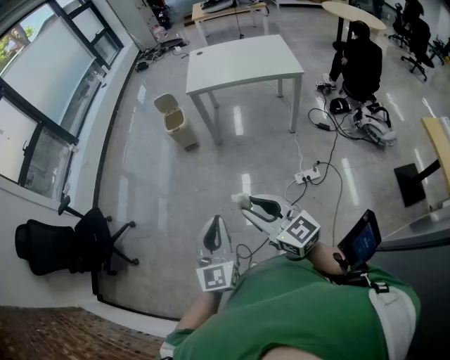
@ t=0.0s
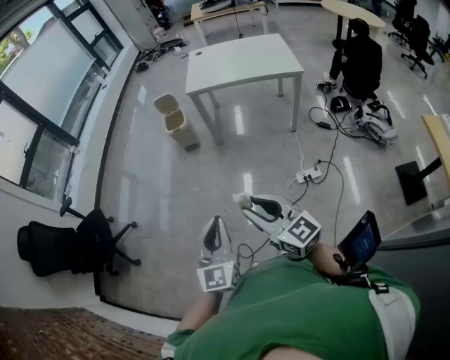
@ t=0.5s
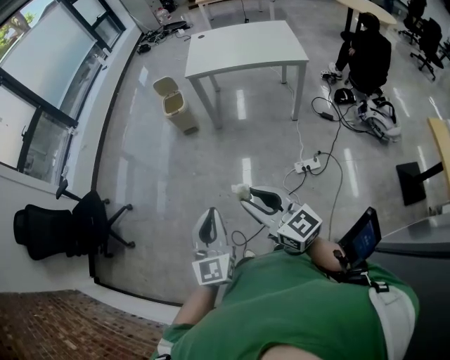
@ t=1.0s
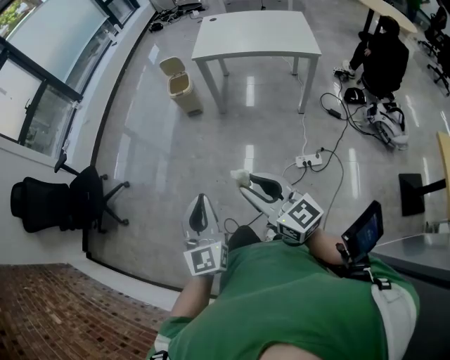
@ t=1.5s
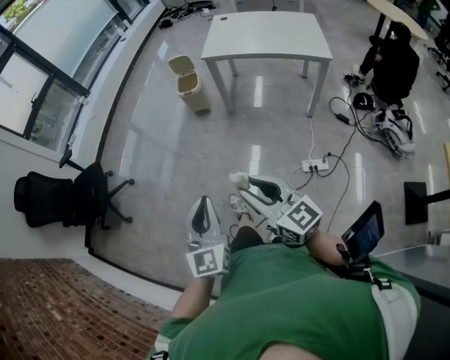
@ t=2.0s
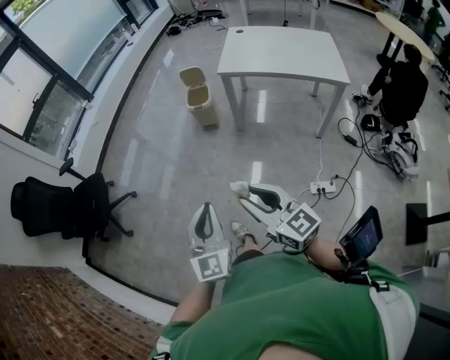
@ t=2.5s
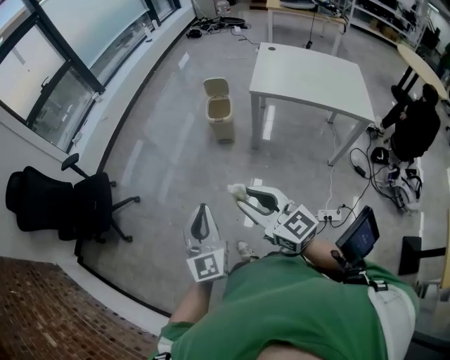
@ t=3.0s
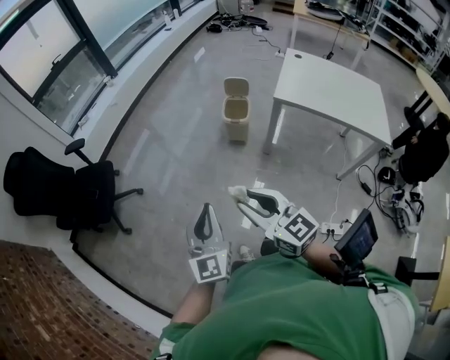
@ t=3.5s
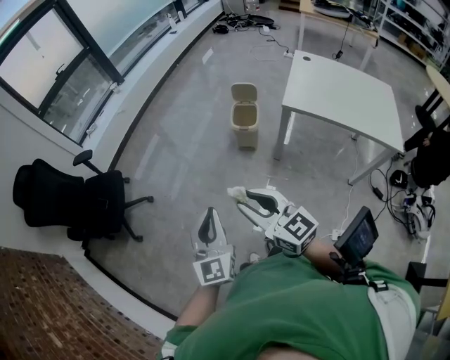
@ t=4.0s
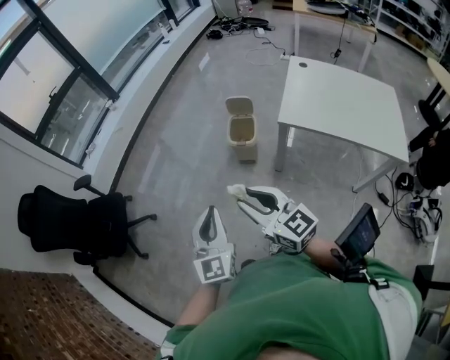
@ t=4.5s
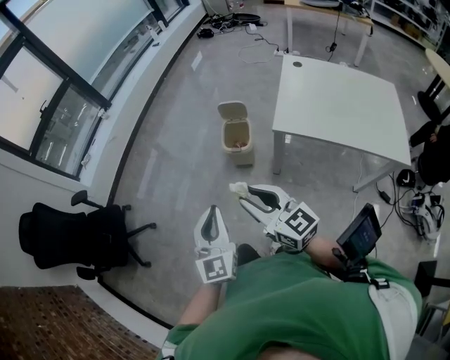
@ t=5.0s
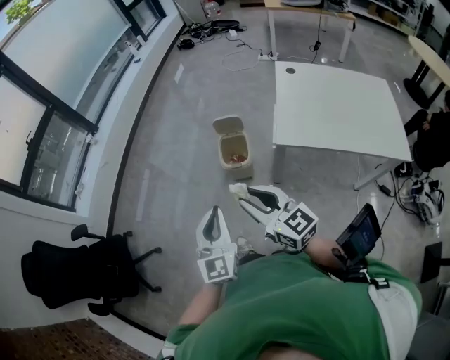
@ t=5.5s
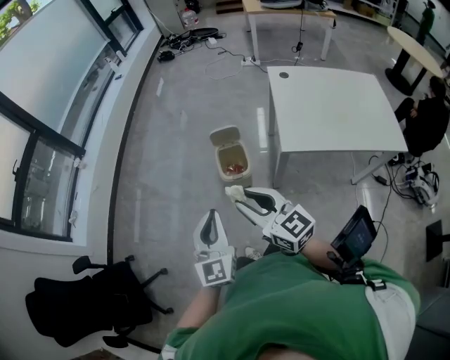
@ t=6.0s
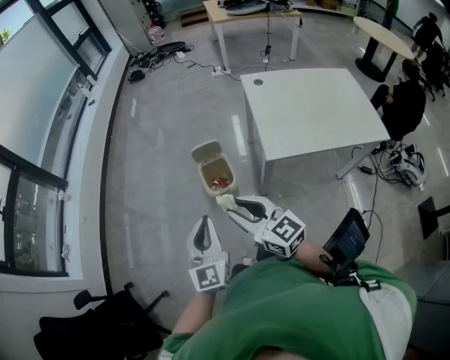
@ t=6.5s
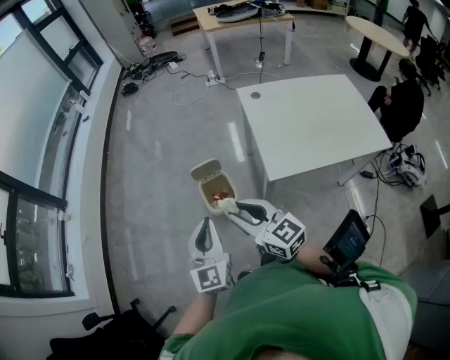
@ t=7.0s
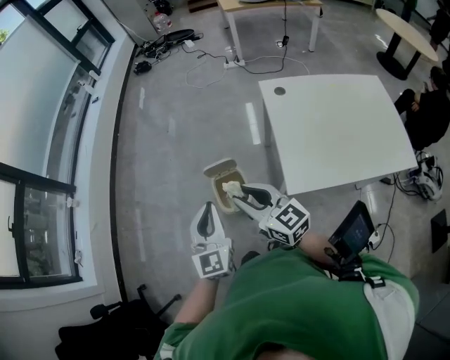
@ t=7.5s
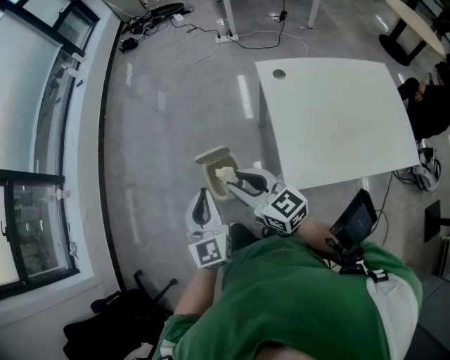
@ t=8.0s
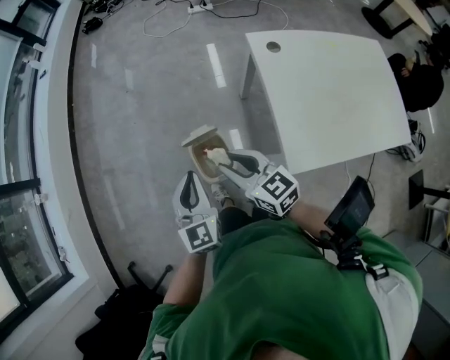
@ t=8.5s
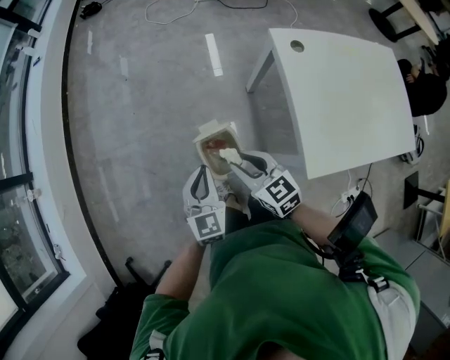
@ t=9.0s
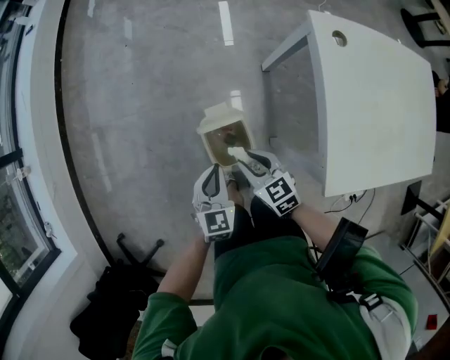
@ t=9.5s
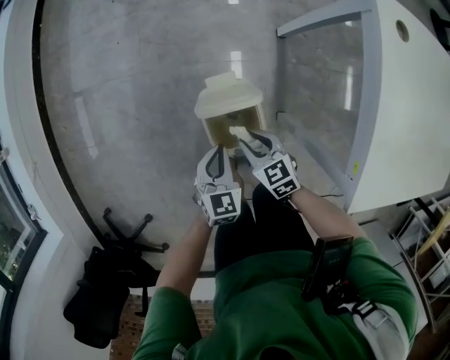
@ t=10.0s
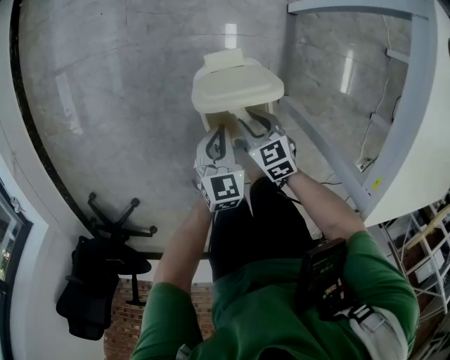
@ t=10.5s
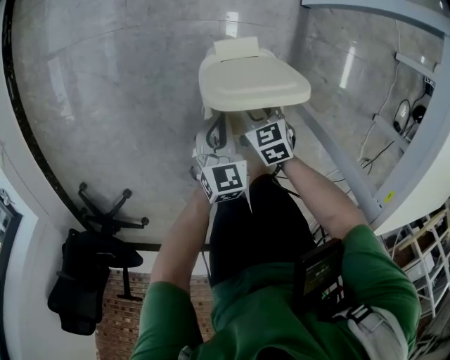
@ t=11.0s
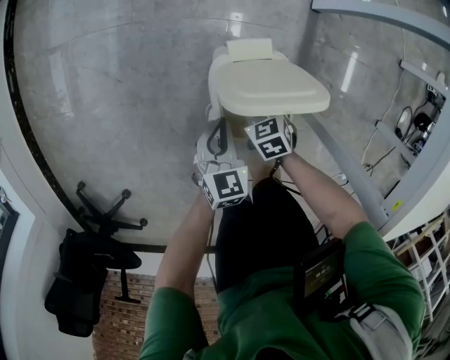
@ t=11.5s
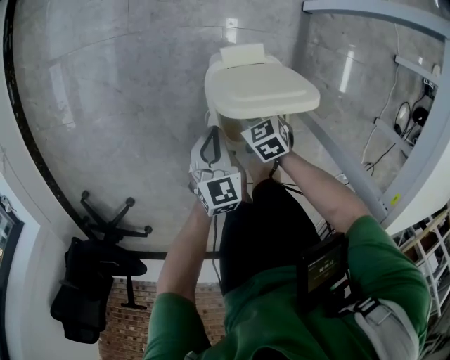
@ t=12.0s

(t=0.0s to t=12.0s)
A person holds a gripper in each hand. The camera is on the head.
t=0.0s - t=2.0s: The right gripper moves approximately 5 cm.
t=2.0s - t=4.0s: Both grippers travel together forward, some 40 cm.
t=4.0s - t=6.0s: The grippers both shift forward by about 35 cm. The right gripper swivels about 20 degrees, while the left gripper rotates some 20 degrees.
t=6.0s - t=8.0s: Both grippers travel together forward and to the right, about 30 cm.
t=8.0s - t=10.0s: Both grippers travel together downward, roughly 40 cm. The right gripper tips its fingers downward by some 40 degrees. The left gripper angles its fingers downward, by approximately 30 degrees.
t=10.0s - t=12.0s: The right gripper travels downward by about 20 cm. The left gripper heads downward and to the left, covering about 15 cm.

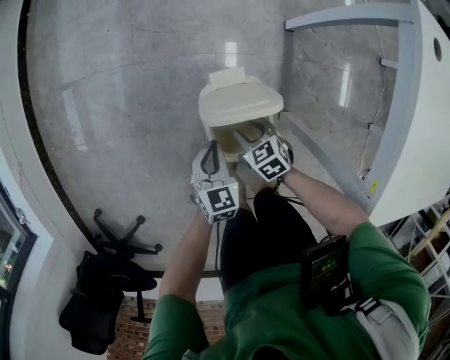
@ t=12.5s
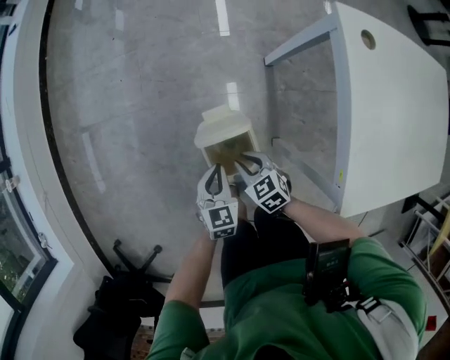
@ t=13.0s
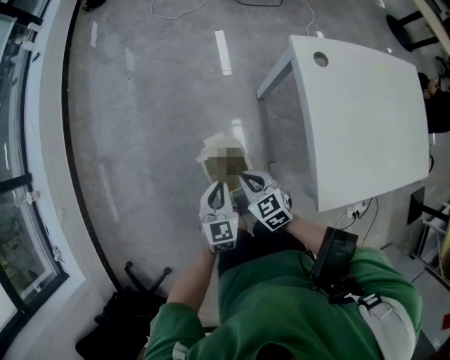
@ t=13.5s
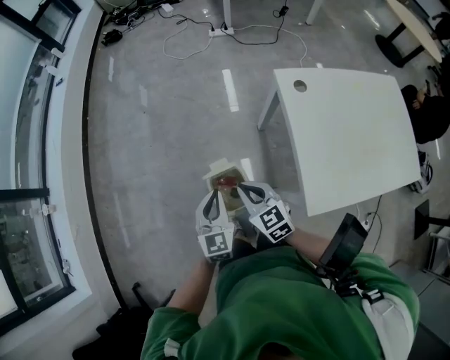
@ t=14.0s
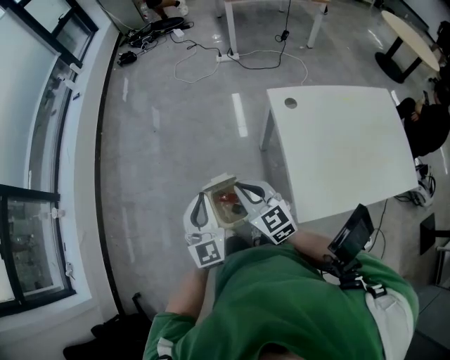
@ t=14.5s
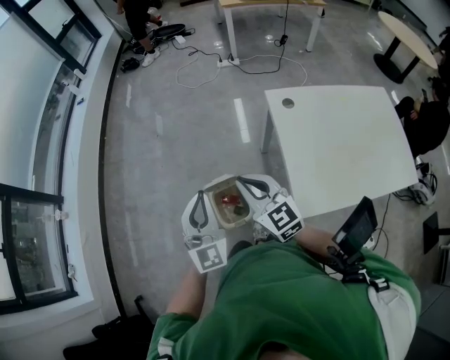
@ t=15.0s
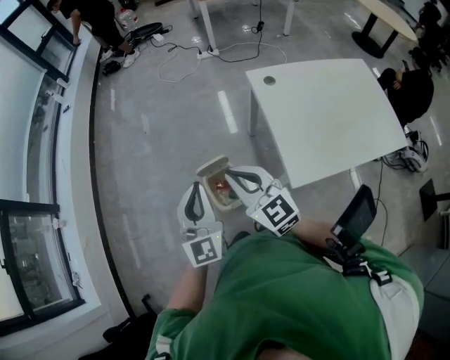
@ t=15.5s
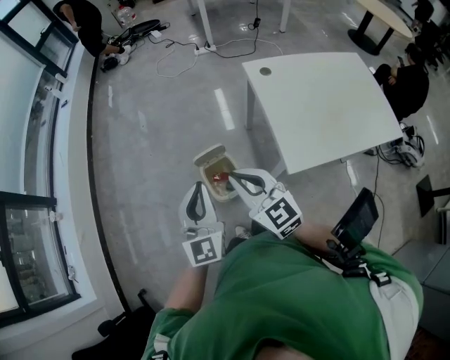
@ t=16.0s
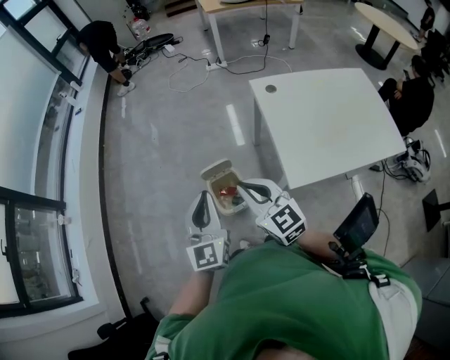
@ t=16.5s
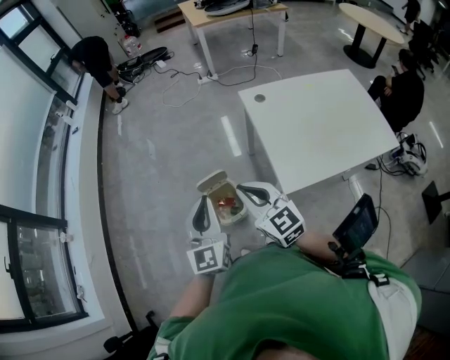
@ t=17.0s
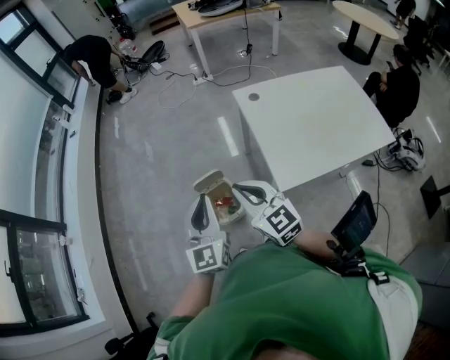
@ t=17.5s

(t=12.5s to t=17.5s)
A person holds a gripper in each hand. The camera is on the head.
t=12.5s - t=15.0s: Both grippers travel together upward, roughly 60 cm. The right gripper points its fingers roughly 50 degrees further upward, and closes its fingers; the left gripper tilts its fingers roughly 50 degrees upward.
t=15.0s - t=17.5s: The grippers both shift backward by about 10 cm.

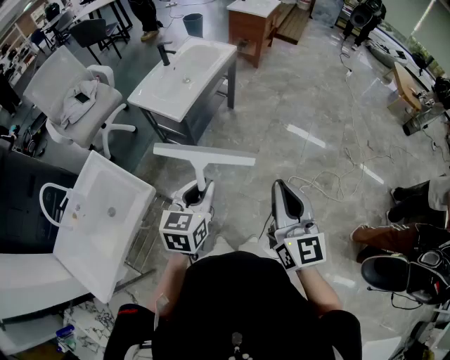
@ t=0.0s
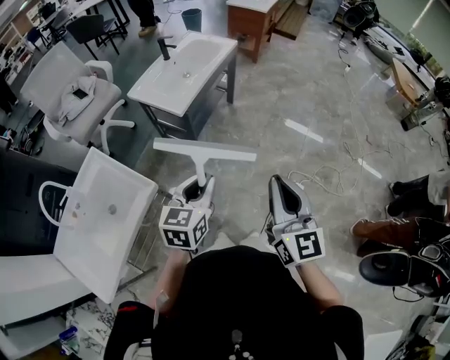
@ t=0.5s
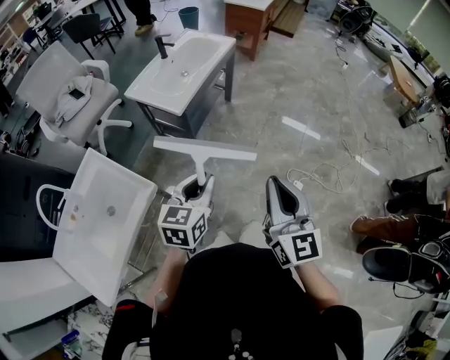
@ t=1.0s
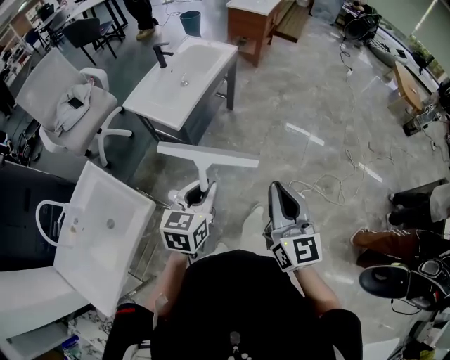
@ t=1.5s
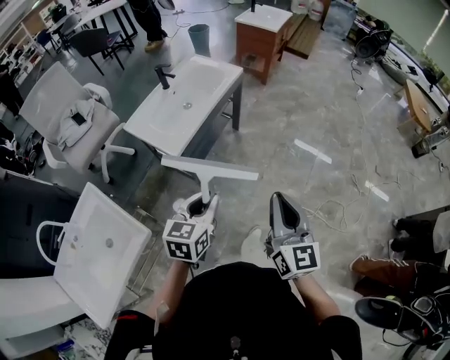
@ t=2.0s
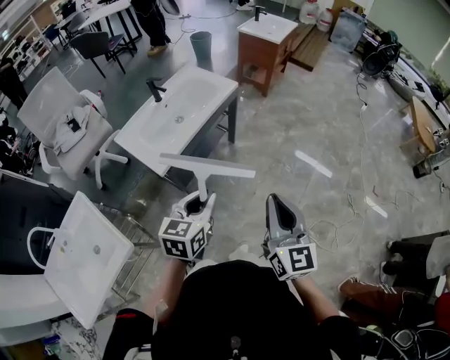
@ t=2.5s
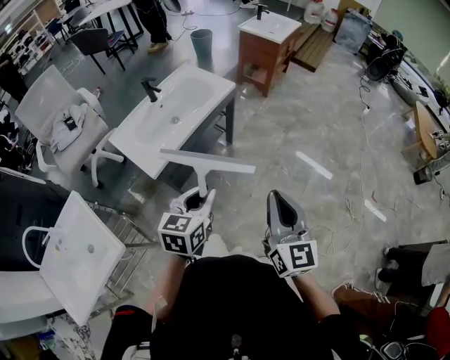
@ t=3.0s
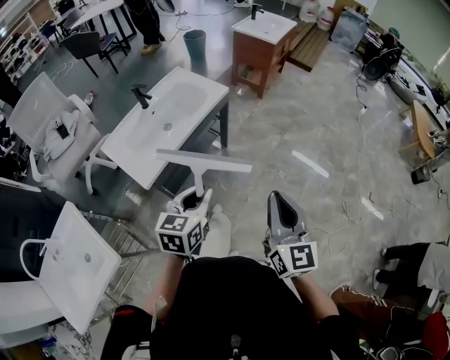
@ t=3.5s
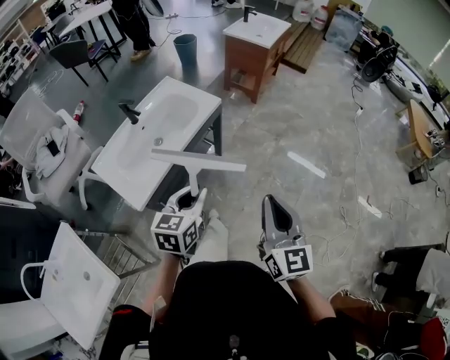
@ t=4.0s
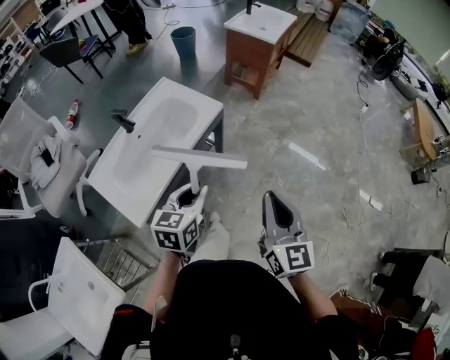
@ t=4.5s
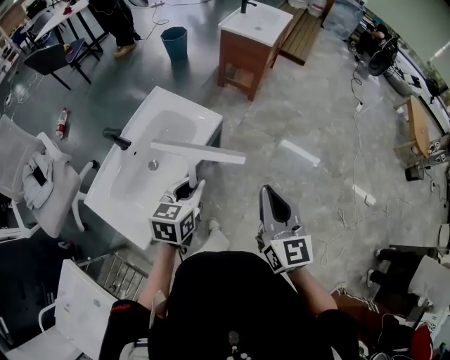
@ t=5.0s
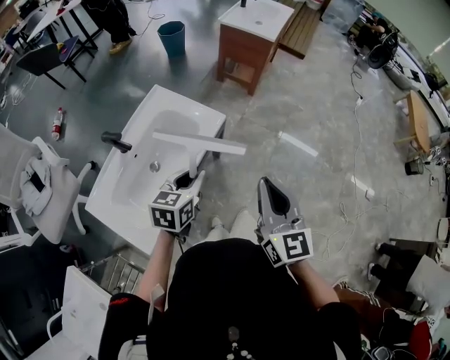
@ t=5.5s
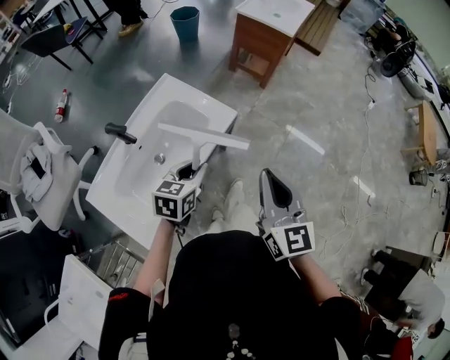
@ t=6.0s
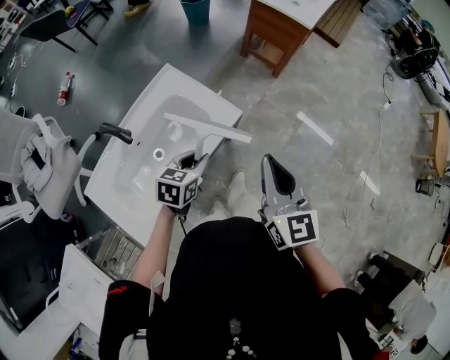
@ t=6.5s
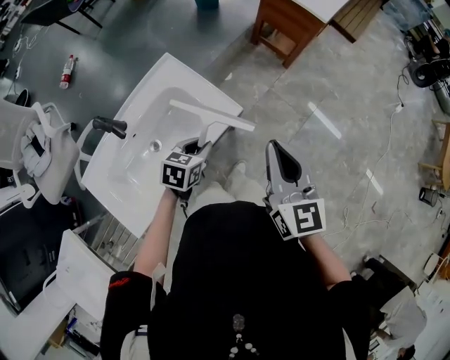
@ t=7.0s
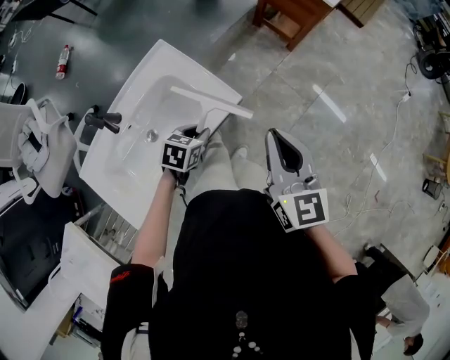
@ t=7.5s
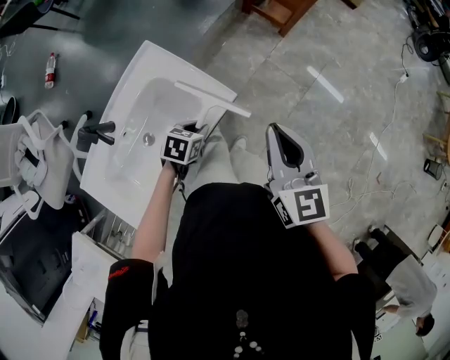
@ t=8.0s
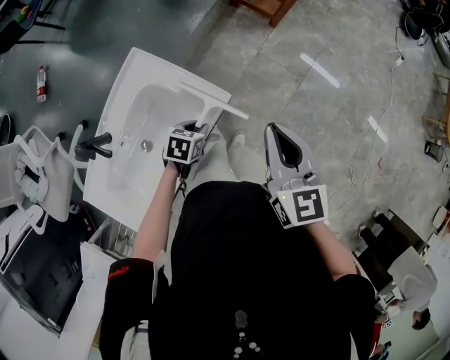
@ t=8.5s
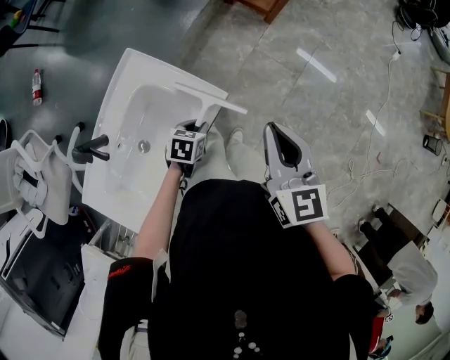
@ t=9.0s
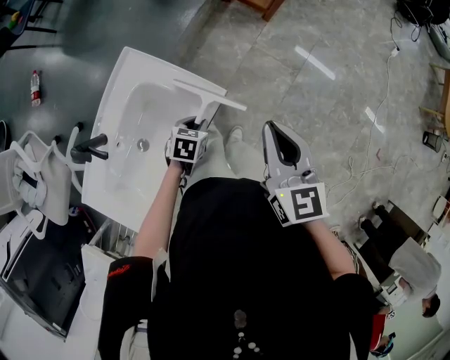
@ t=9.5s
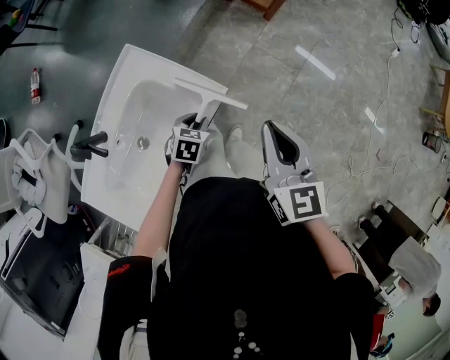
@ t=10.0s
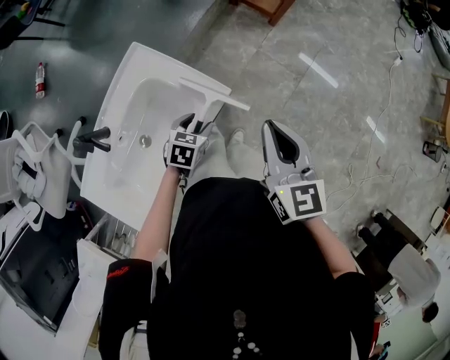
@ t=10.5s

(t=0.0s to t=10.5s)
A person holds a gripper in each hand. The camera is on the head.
t=0.0s - t=2.0s: The grippers both shift forward by roughly 20 cm.
t=2.0s - t=4.0s: Both grippers move forward, approximately 30 cm.
t=4.0s - t=6.5s: The two grippers go some 40 cm forward.
t=6.5s - t=8.5s: The right gripper heads forward and downward, covering roughly 15 cm. Meanwhile the left gripper heads downward and forward, covering some 20 cm, and swivels some 20 degrees.
t=8.5s - t=10.5s: The left gripper opens its fingers.
